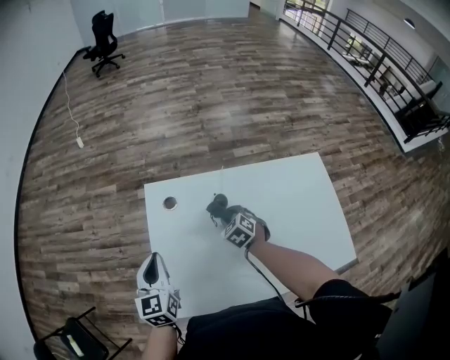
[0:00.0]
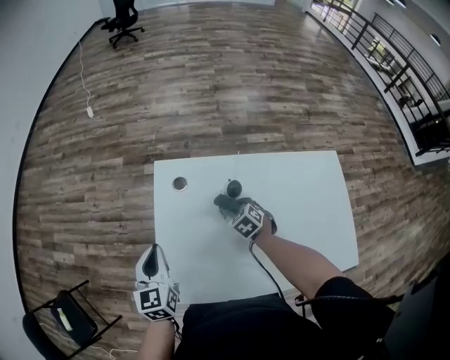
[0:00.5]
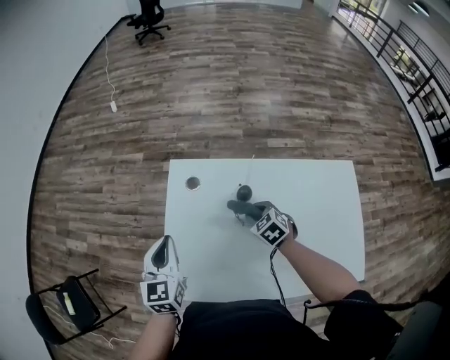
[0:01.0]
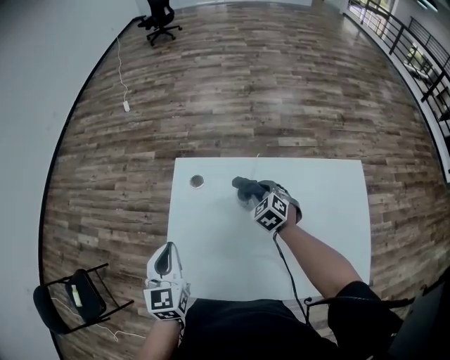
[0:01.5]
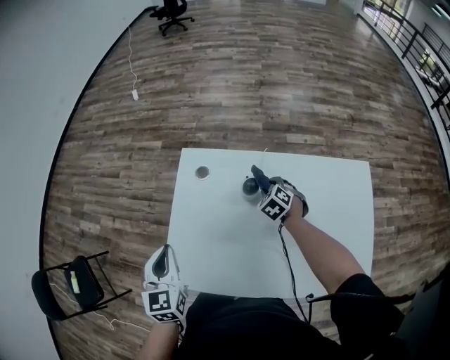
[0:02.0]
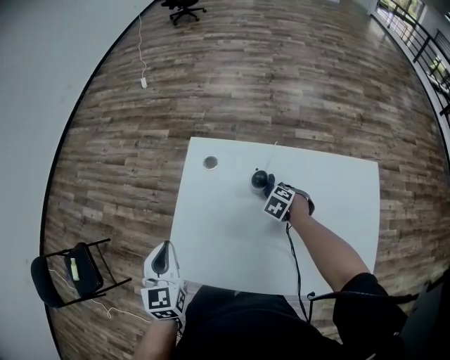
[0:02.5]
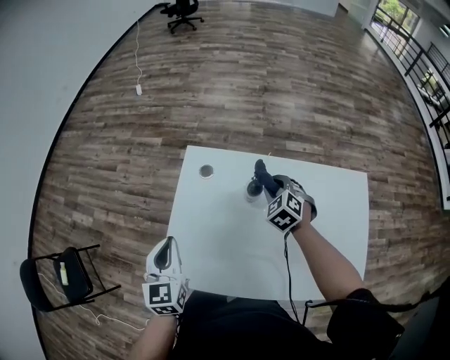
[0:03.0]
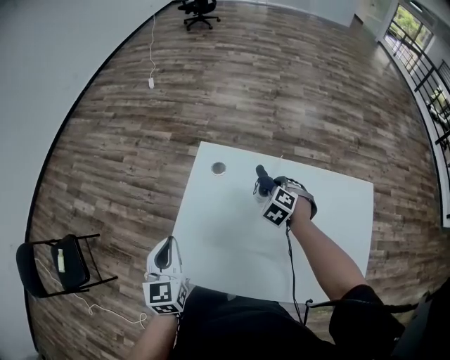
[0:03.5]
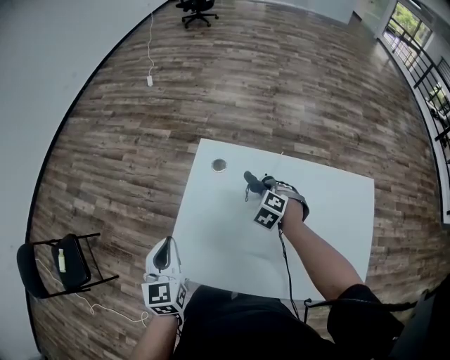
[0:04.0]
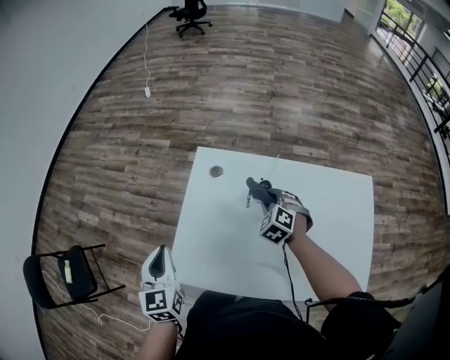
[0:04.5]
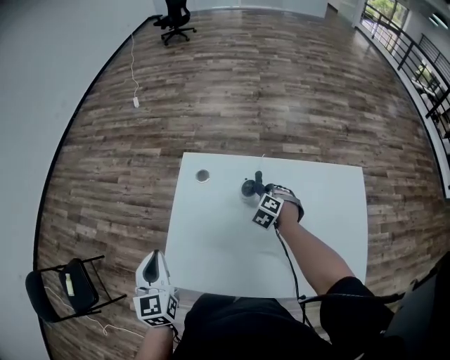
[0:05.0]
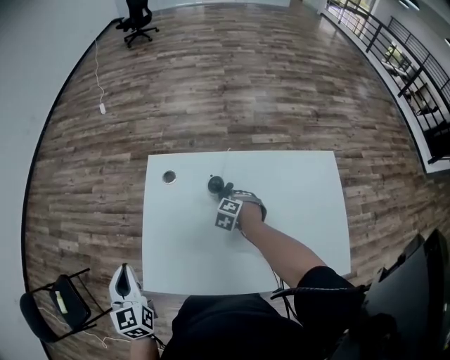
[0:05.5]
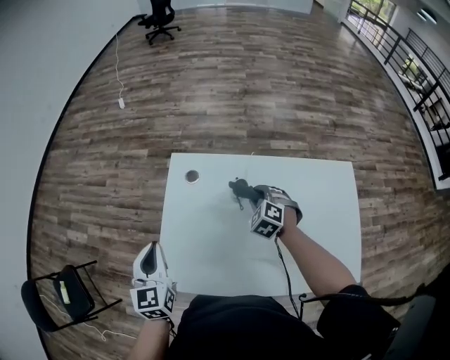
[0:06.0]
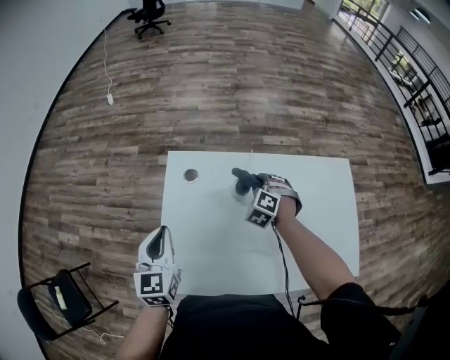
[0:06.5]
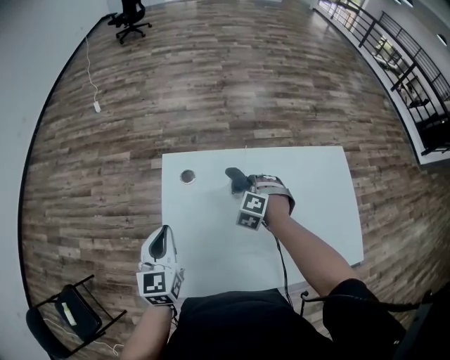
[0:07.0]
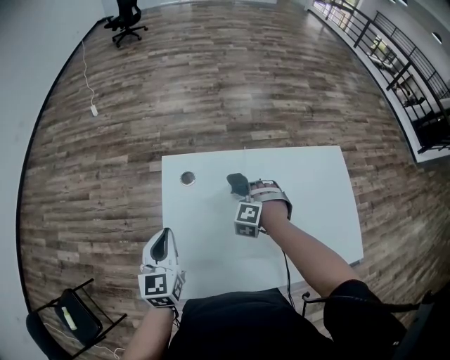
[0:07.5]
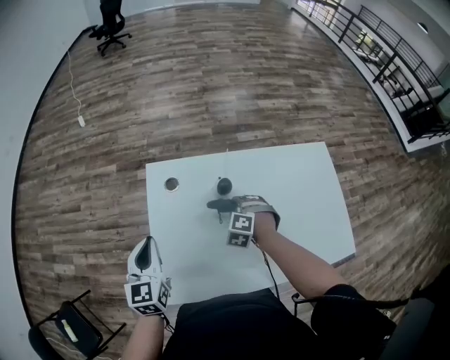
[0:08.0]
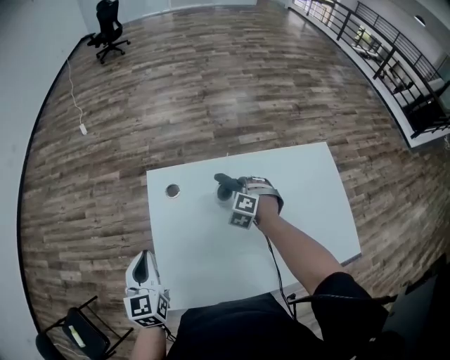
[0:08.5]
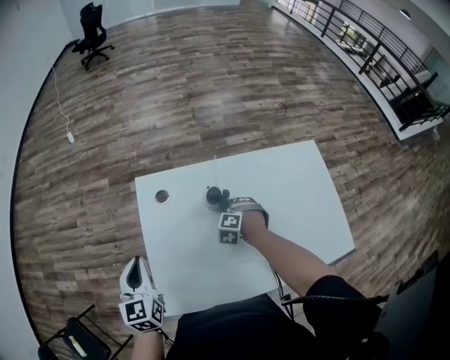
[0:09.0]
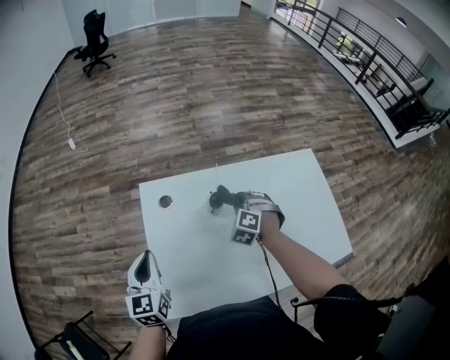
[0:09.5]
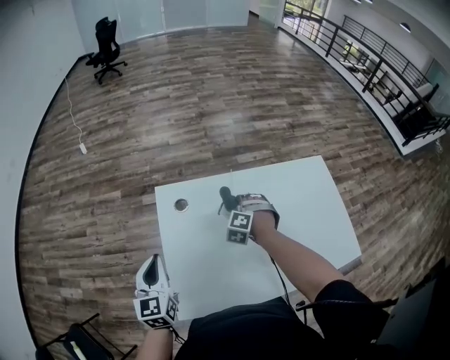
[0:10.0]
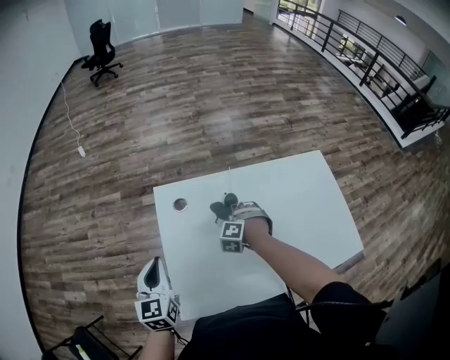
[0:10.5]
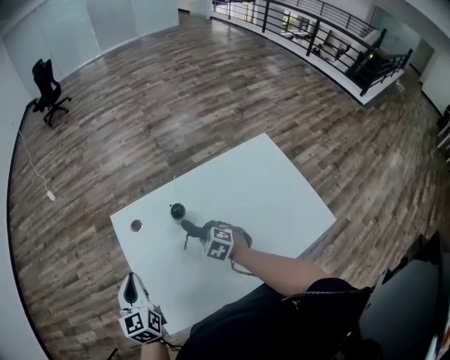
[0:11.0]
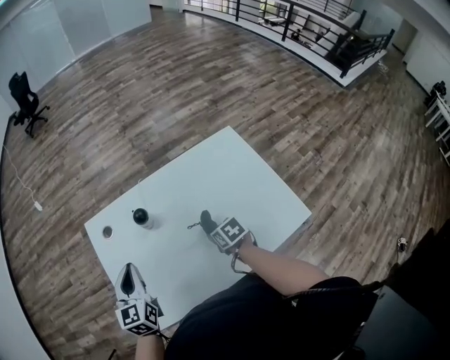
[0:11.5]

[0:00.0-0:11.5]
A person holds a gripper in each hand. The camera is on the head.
0:00.0 to 0:02.0: The left gripper shifts some 10 cm backward; the right gripper moves about 5 cm.
0:02.0 to 0:04.0: The right gripper moves up and down over some 15 cm, changing direction 2 times, and changes its angle by roughly 20 degrees.
0:04.0 to 0:06.0: The right gripper travels downward and back again, some 10 cm each way.
0:06.0 to 0:07.5: The left gripper shifts by approximately 5 cm; the right gripper swivels some 30 degrees.
0:07.5 to 0:09.5: The right gripper goes downward and returns, some 5 cm each way, and rotates some 30 degrees.
0:09.5 to 0:11.5: The right gripper is displaced backward, to the right and downward by roughly 20 cm, and rolls clockwise, seen from behind, by roughly 70 degrees. The left gripper travels to the right by some 10 cm.

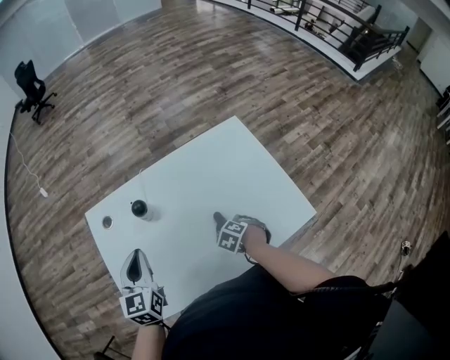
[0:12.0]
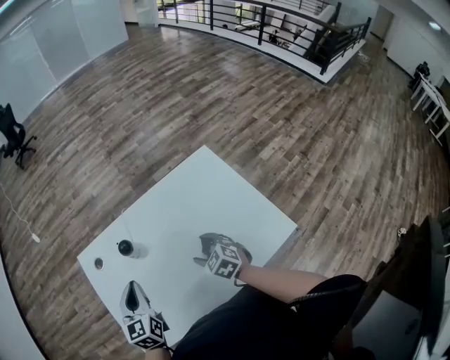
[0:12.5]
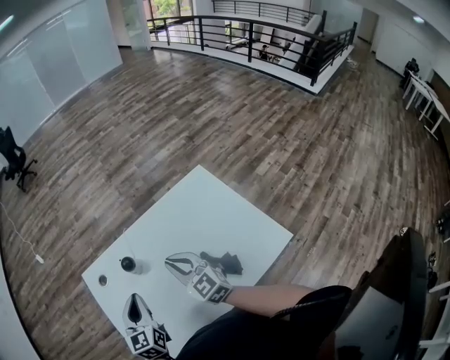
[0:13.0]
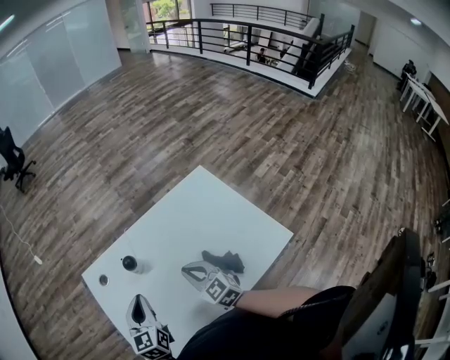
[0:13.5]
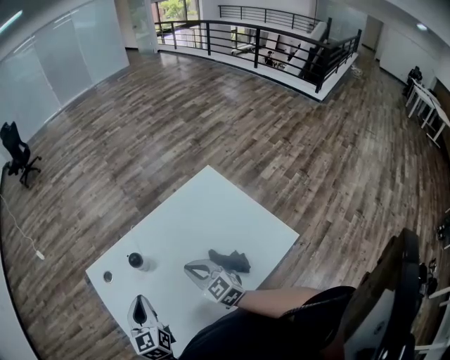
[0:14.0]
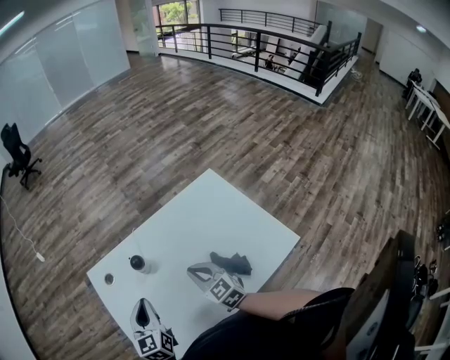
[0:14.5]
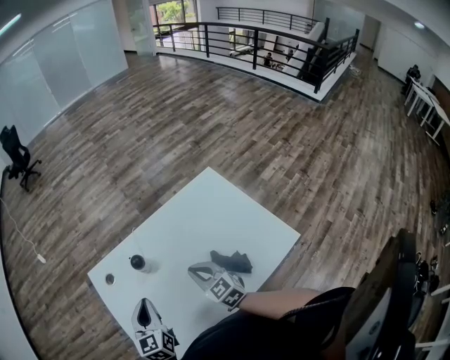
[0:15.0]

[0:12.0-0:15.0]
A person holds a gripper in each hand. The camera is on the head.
0:12.0 to 0:13.5: The right gripper shifts about 20 cm upward, tilts its fingers some 60 degrees upward, and closes.
0:13.5 to 0:15.0: The grippers make only small movements.

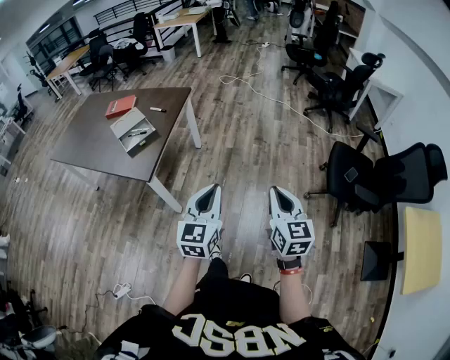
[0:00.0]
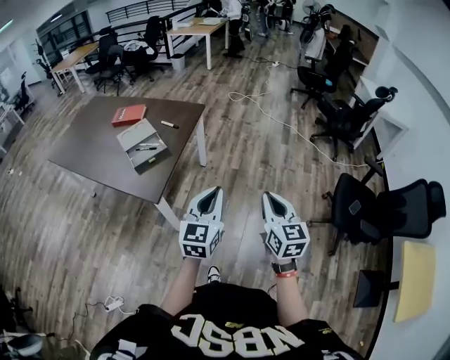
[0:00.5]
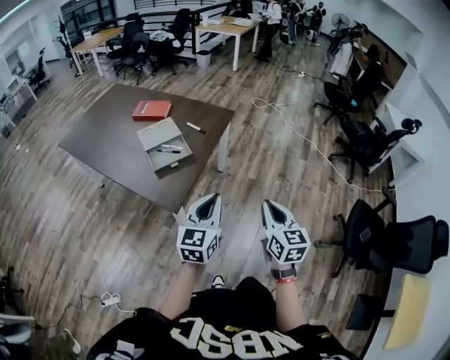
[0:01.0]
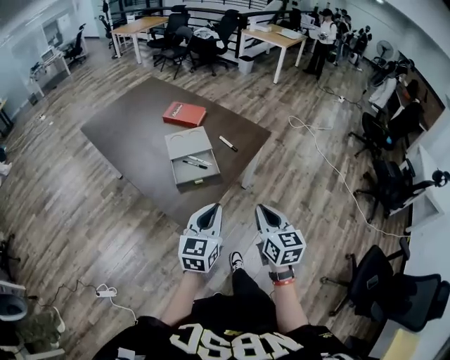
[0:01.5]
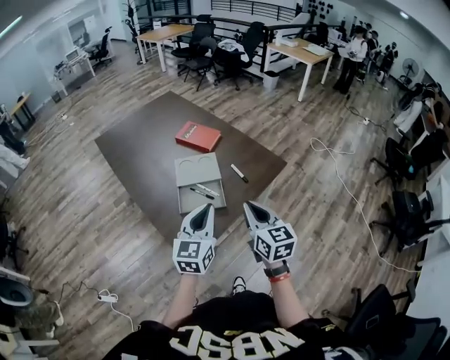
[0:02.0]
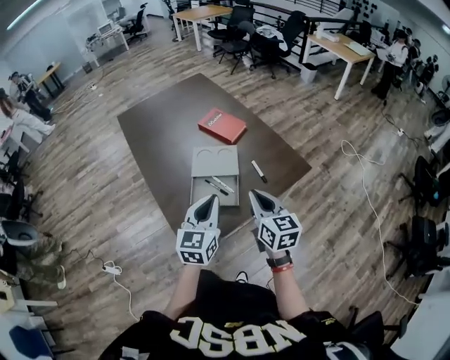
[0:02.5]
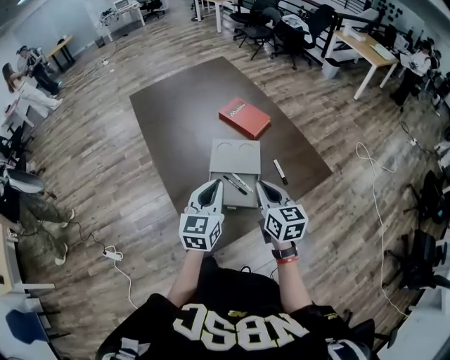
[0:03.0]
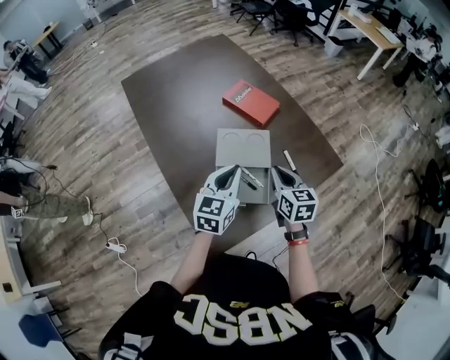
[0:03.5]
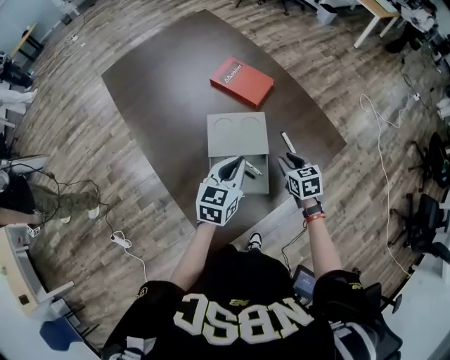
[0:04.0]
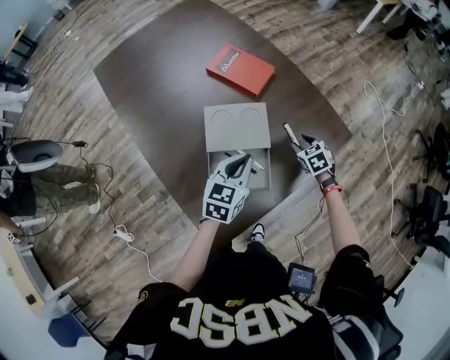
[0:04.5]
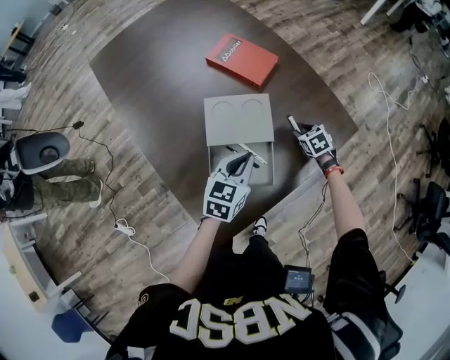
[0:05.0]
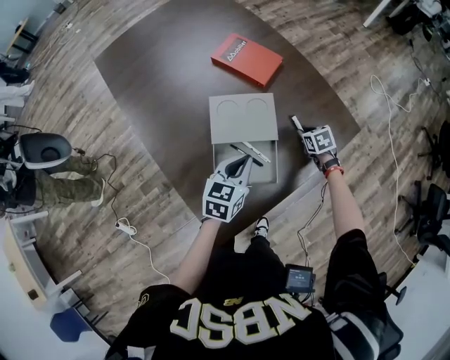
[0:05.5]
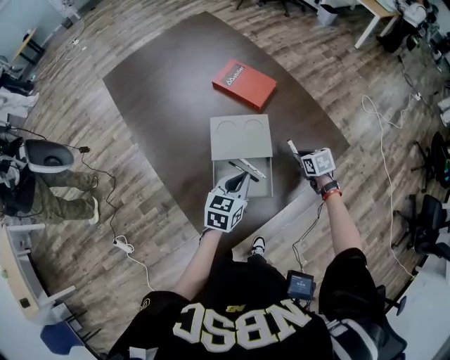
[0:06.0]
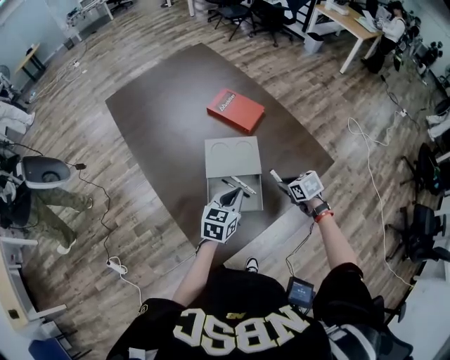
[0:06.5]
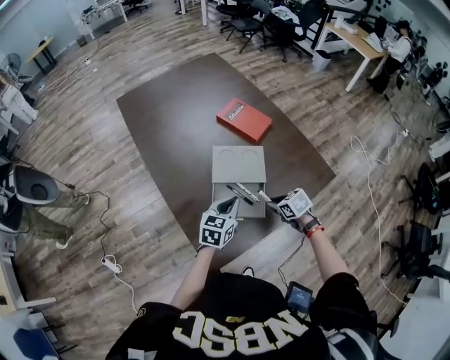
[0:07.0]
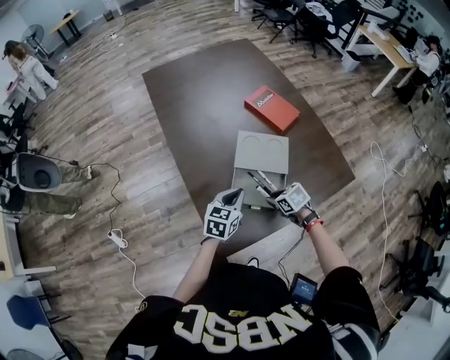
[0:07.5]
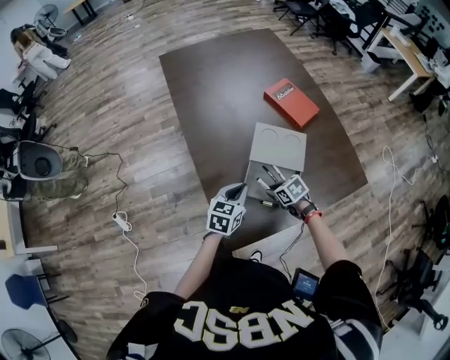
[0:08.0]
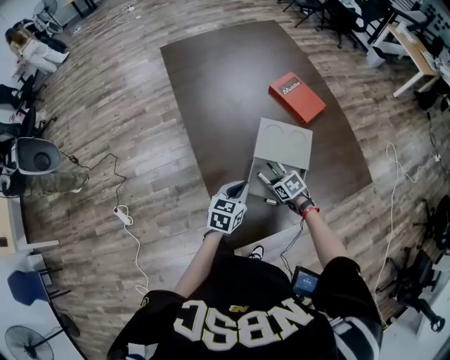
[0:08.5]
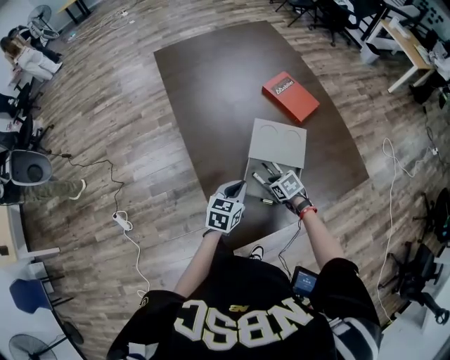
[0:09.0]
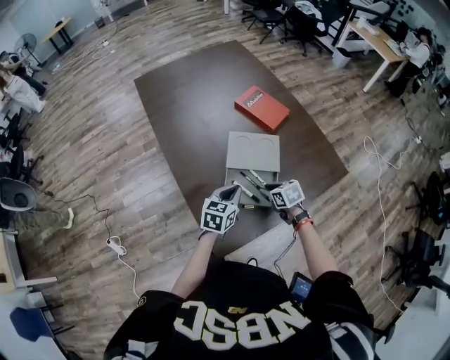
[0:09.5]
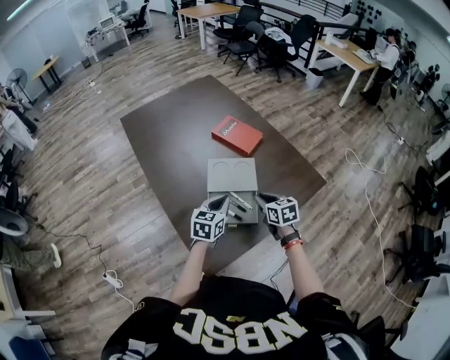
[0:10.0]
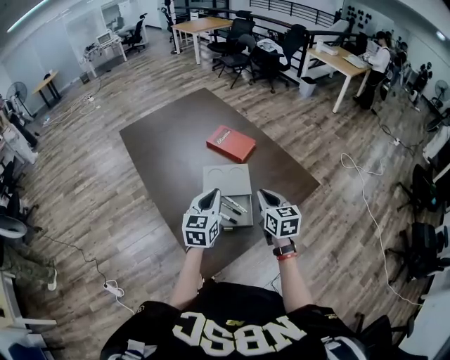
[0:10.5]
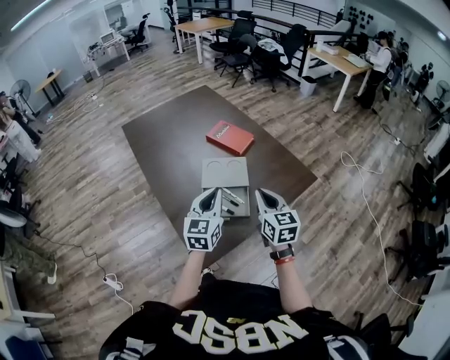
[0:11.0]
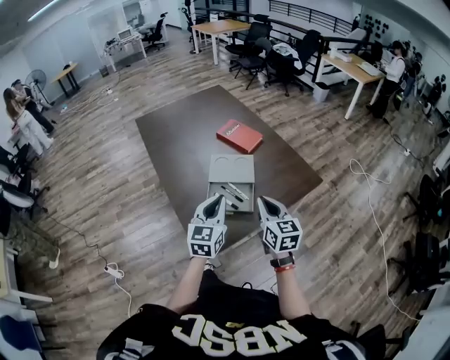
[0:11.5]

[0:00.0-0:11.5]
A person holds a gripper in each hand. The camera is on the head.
0:00.0 to 0:02.0: The two grippers travel together, roughly 60 cm. The left gripper rotates roughly 30 degrees, while the right gripper rotates roughly 40 degrees.
0:02.0 to 0:04.0: Both grippers move forward and downward, about 30 cm. The right gripper points its fingers roughly 30 degrees further downward, and opens up.
0:04.0 to 0:06.0: The left gripper goes roughly 5 cm downward; the right gripper is displaced downward and to the right by approximately 10 cm.
0:06.0 to 0:07.5: The left gripper ends up some 10 cm from where it was, while the right gripper shifts by about 20 cm, and swivels some 30 degrees.
0:09.5 to 0:11.5: Both grippers move upward and backward, roughly 25 cm. The left gripper turns by approximately 30 degrees, while the right gripper tilts its fingers roughly 40 degrees upward, and closes up.

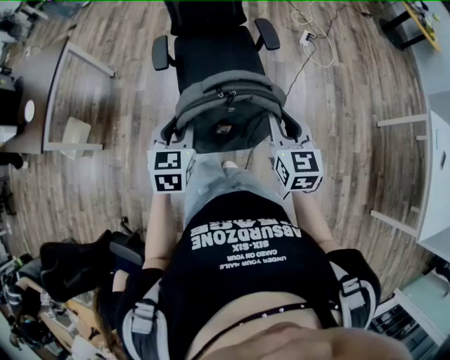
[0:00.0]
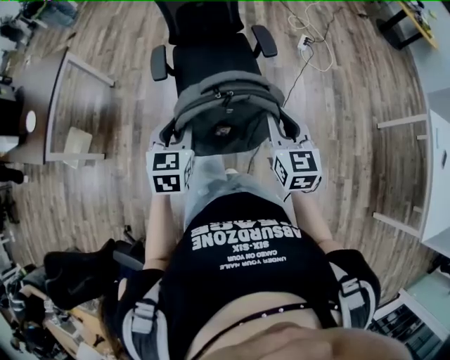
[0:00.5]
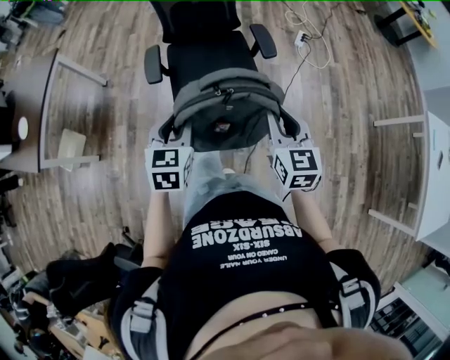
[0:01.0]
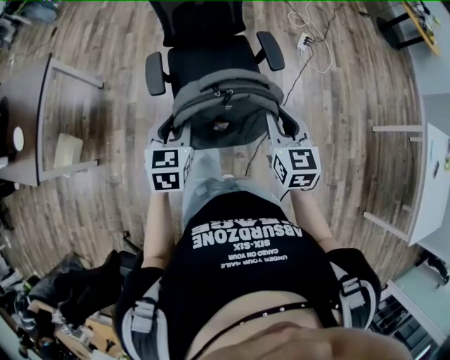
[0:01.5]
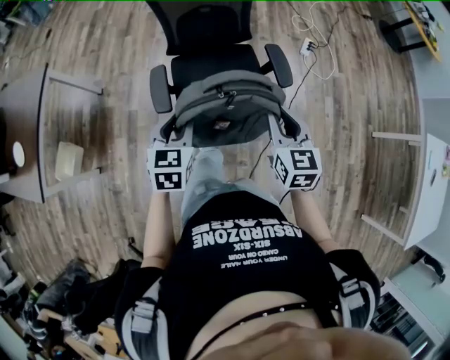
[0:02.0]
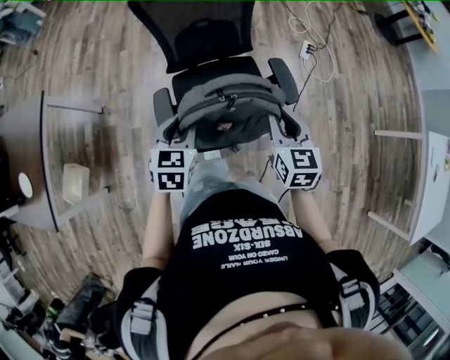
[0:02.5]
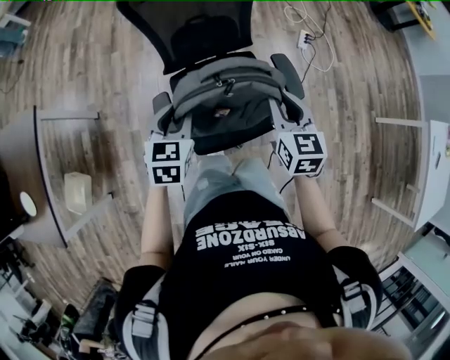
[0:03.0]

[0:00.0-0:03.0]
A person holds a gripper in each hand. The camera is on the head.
0:00.0 to 0:01.5: The two grippers go roughly 15 cm forward.
0:01.5 to 0:03.0: The left gripper is displaced forward by some 30 cm; the right gripper travels forward and to the left by about 30 cm.
